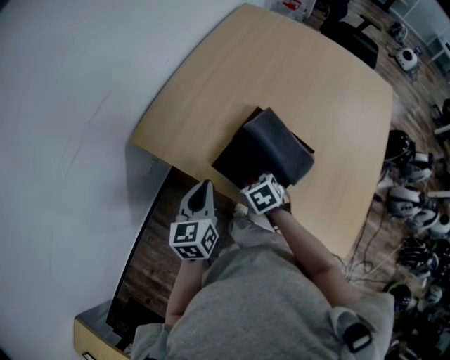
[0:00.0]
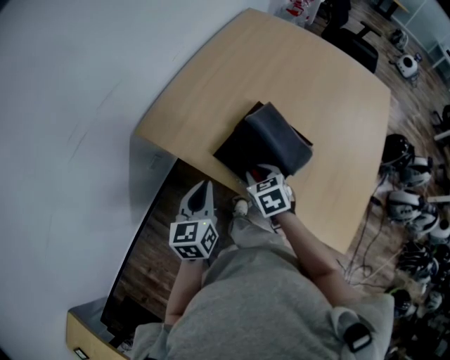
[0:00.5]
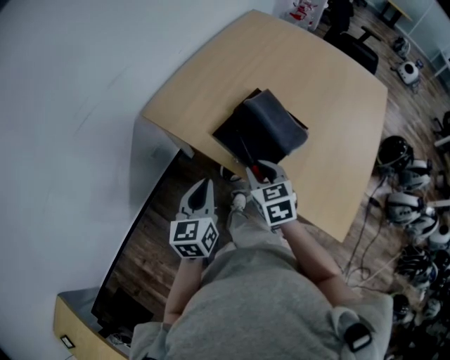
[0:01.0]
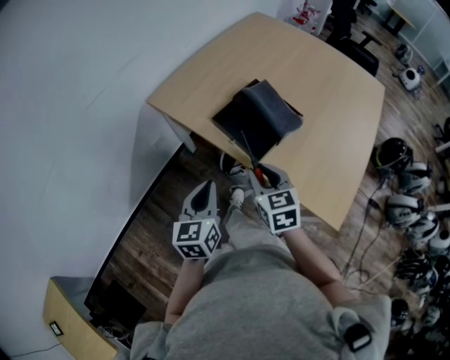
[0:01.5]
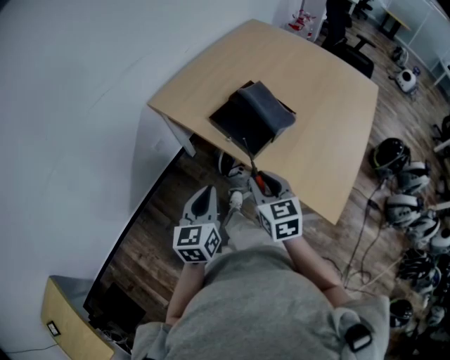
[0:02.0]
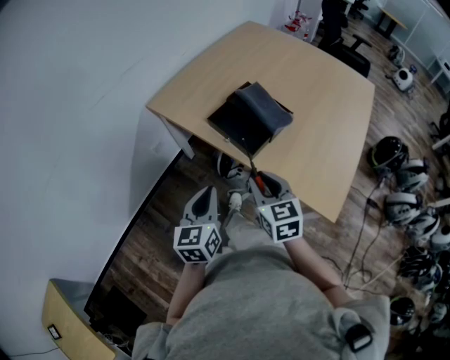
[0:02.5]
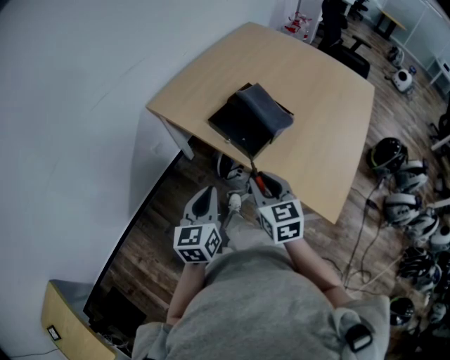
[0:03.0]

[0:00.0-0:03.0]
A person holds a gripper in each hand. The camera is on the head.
0:00.0 to 0:01.5: The left gripper moves backward, about 20 cm. Meanwhile the right gripper is displaced backward and upward by approximately 20 cm, and points its fingers about 30 degrees further upward.
0:01.5 to 0:03.0: The right gripper is displaced backward by approximately 5 cm.

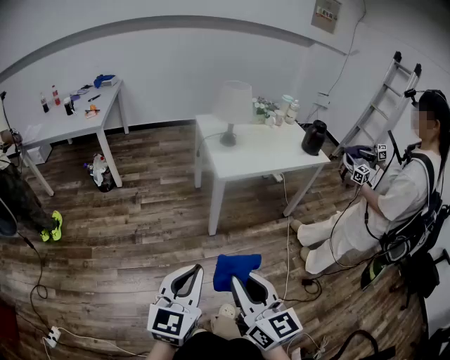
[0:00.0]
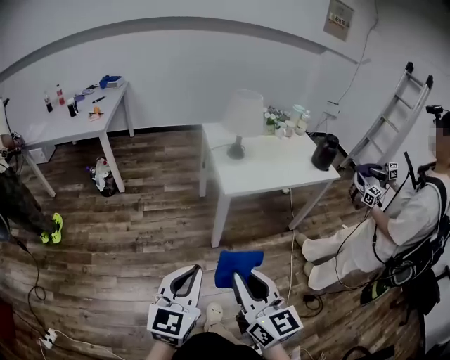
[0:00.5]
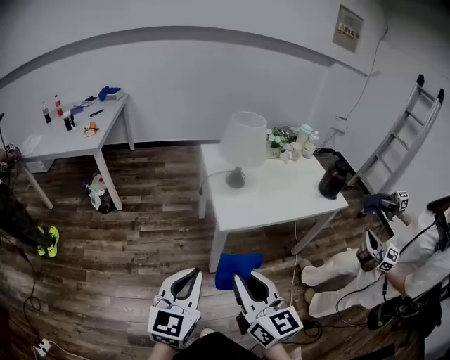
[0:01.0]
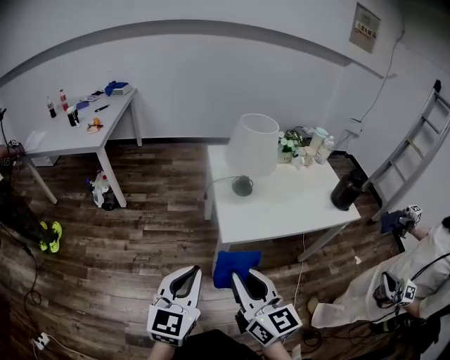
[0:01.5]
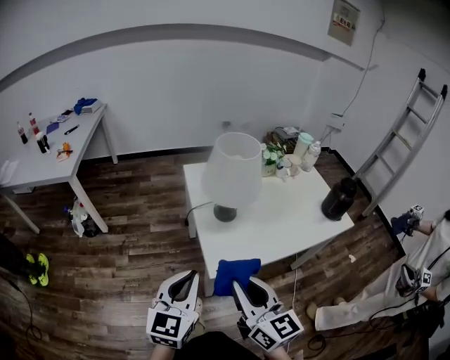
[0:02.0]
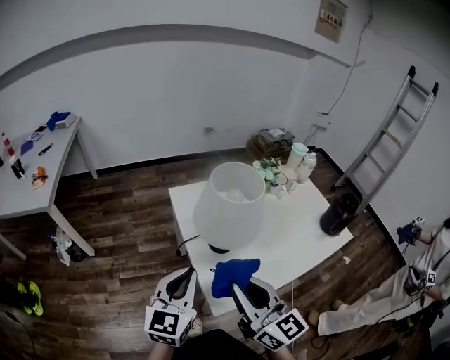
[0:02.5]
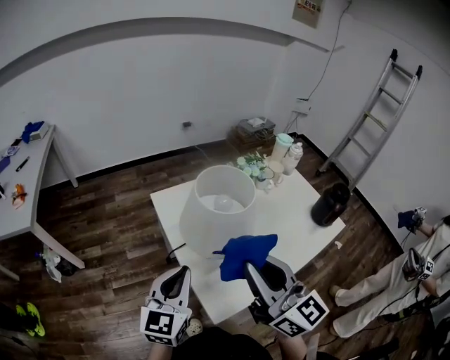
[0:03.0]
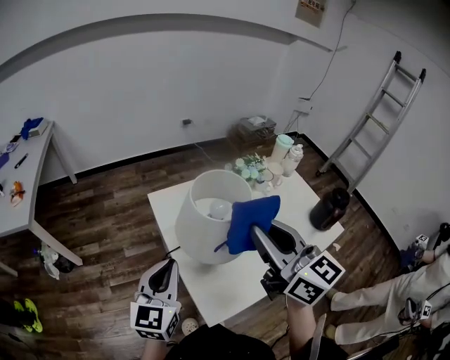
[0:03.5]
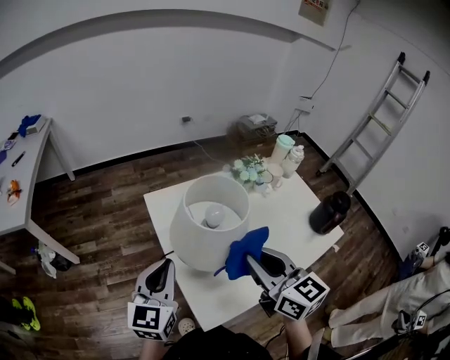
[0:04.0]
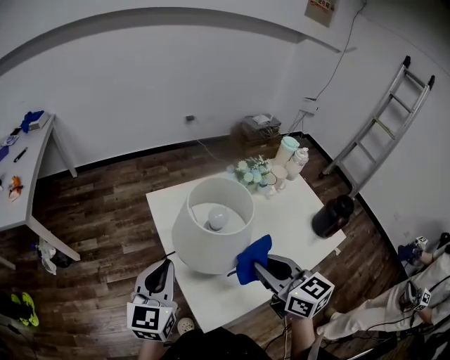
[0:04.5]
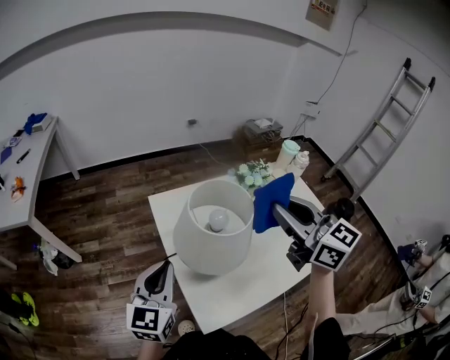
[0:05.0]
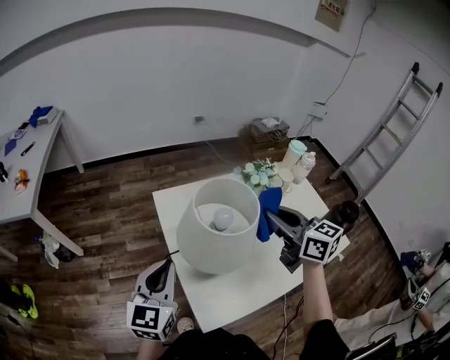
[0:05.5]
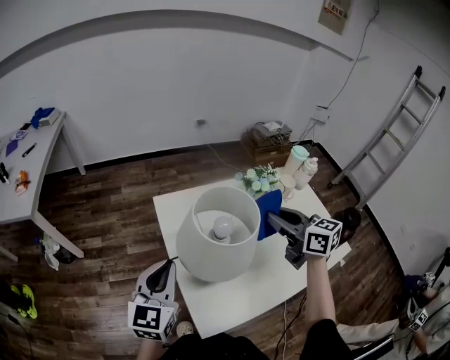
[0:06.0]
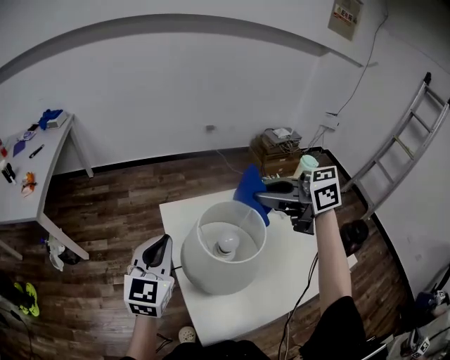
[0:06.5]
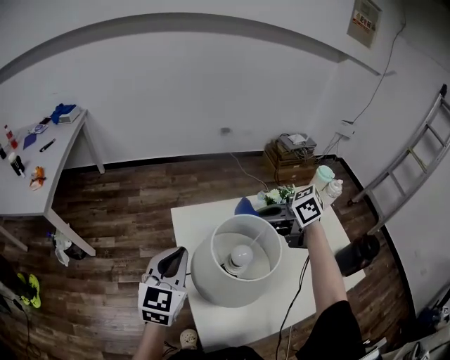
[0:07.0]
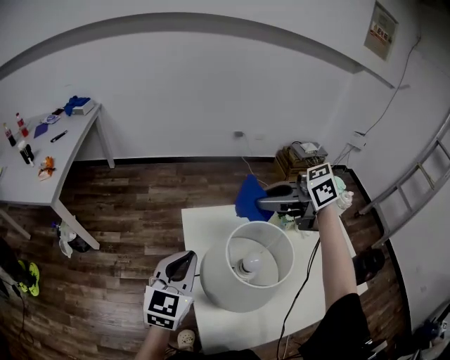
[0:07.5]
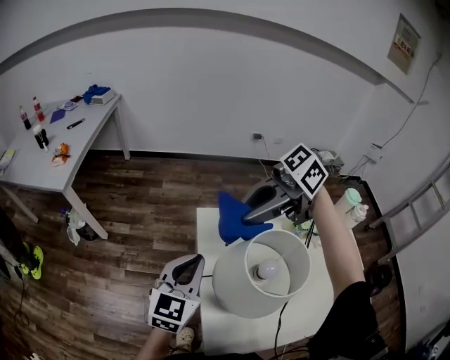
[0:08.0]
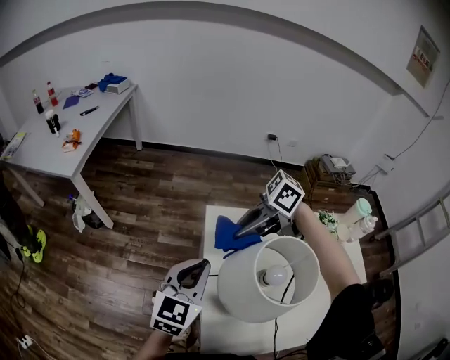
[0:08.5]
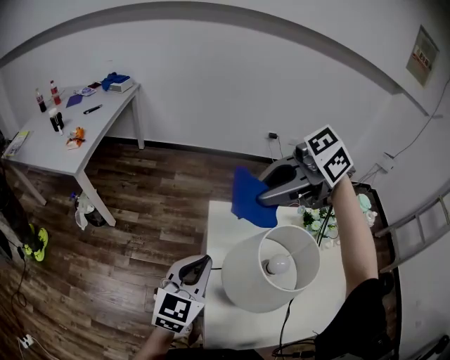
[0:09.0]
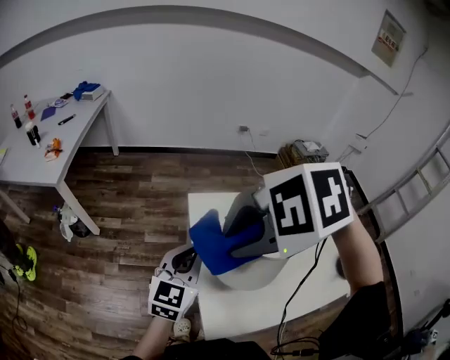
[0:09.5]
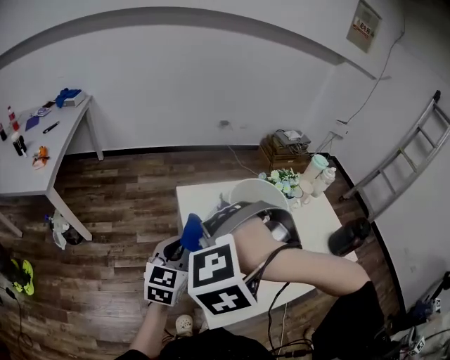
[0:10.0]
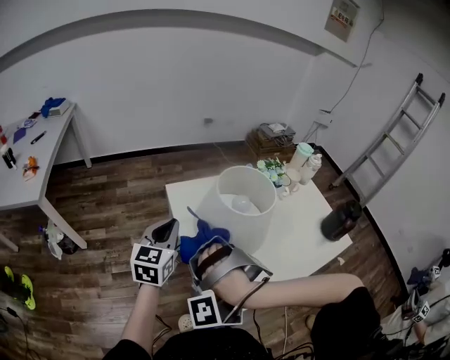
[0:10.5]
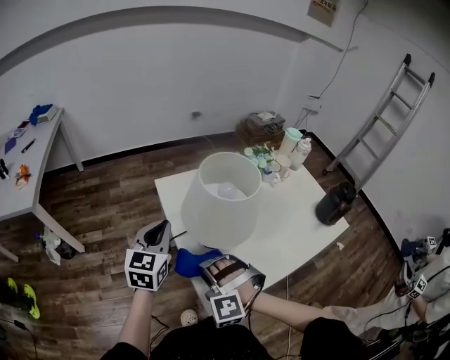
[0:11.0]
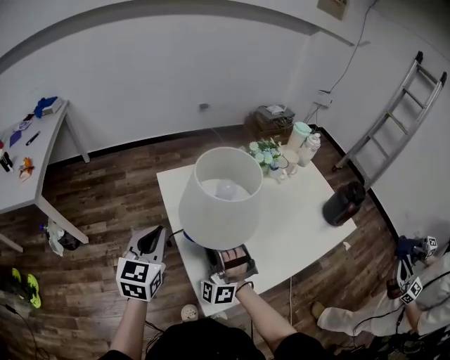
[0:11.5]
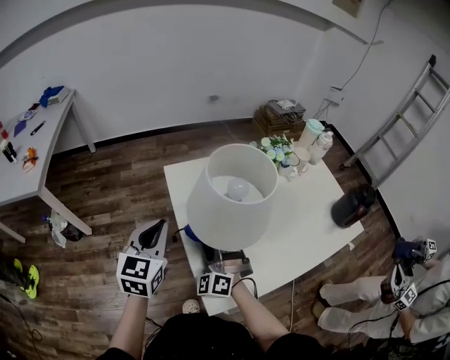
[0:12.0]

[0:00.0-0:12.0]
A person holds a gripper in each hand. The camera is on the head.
0:00.0 to 0:02.0: The pair of grippers is taken forward, roughly 50 cm.
0:02.0 to 0:04.0: Both grippers move forward, approximately 25 cm.
0:04.0 to 0:06.0: The right gripper shifts about 15 cm forward and to the right.
0:06.0 to 0:08.0: The left gripper shifts by approximately 10 cm, while the right gripper moves up and down over about 10 cm, changing direction 2 times, and changes its angle by approximately 90 degrees.
0:08.0 to 0:10.0: The left gripper ends up roughly 5 cm from where it was, while the right gripper swings up and down, about 15 cm each way, with 2 reversals, and points its fingers about 40 degrees further downward.
0:10.0 to 0:12.0: The right gripper is displaced downward by roughly 25 cm, and points its fingers about 40 degrees further upward.

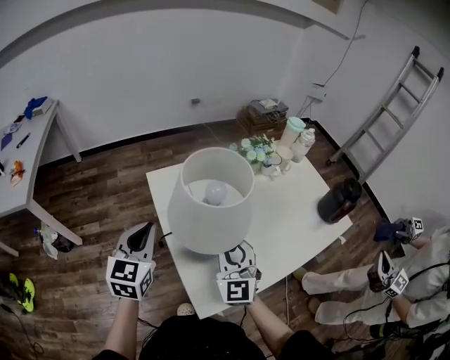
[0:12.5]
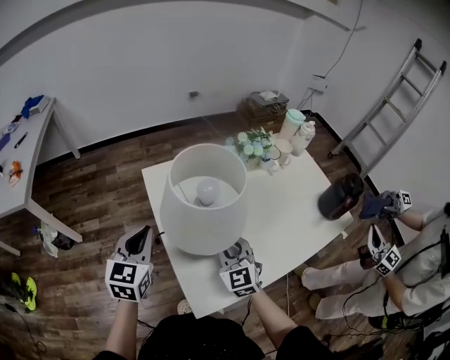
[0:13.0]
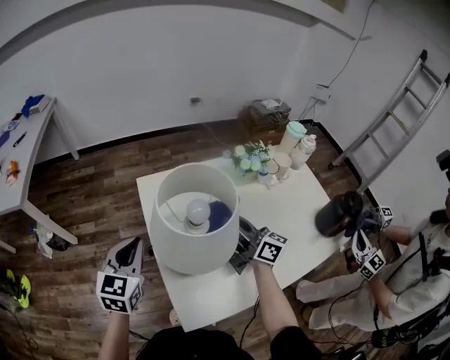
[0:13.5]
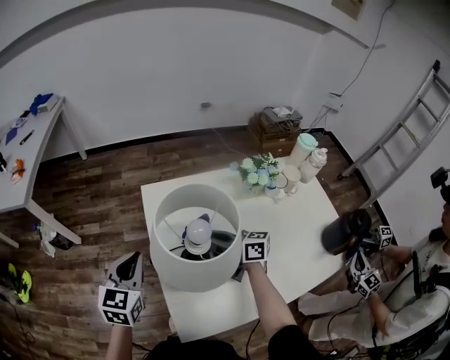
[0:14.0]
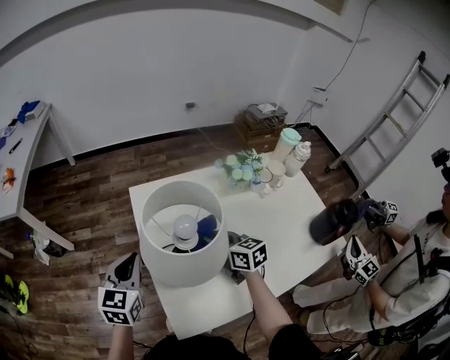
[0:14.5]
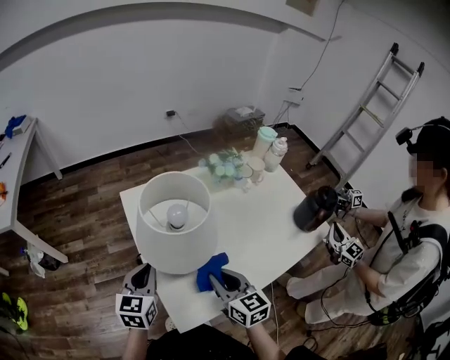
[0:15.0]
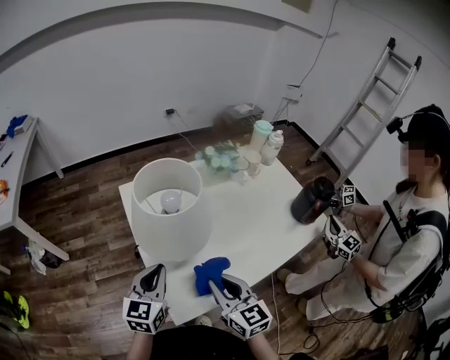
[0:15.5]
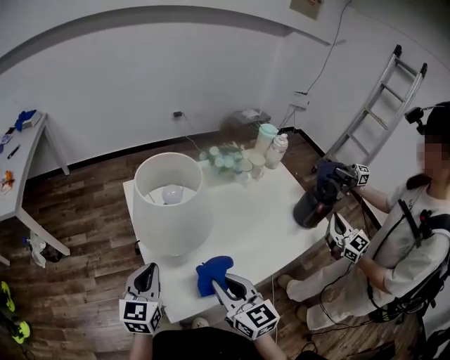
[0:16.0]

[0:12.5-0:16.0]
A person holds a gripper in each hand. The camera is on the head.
0:12.5 to 0:14.5: The right gripper goes up and down, roughly 10 cm each way, reversing 2 times, and changes its angle by roughly 60 degrees.
0:14.5 to 0:16.0: The right gripper moves backward, about 25 cm, and swivels some 30 degrees. The left gripper moves backward and to the right, roughly 10 cm.

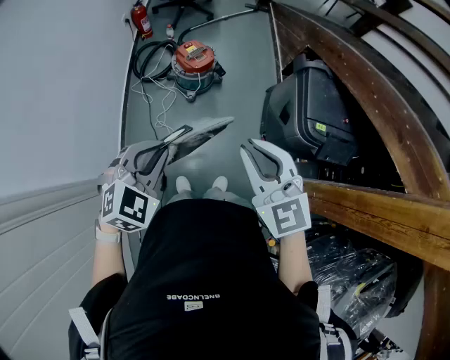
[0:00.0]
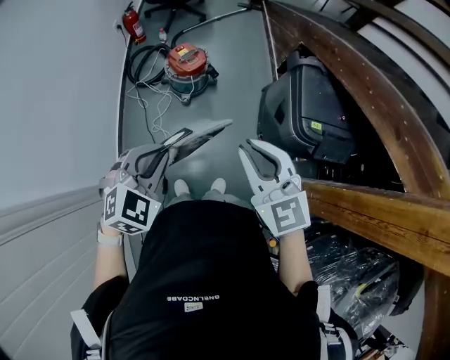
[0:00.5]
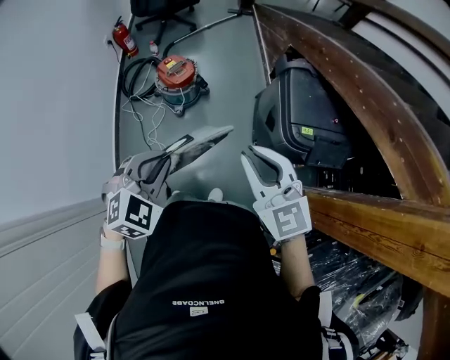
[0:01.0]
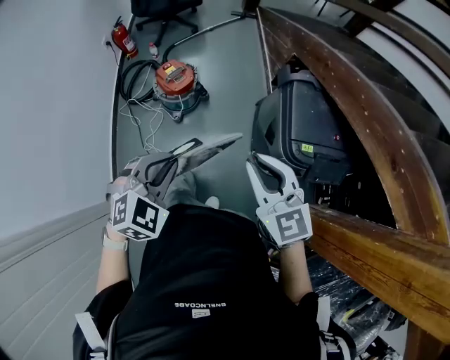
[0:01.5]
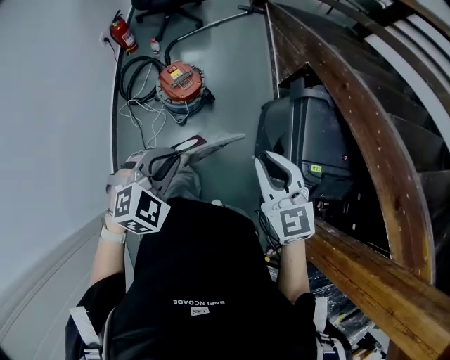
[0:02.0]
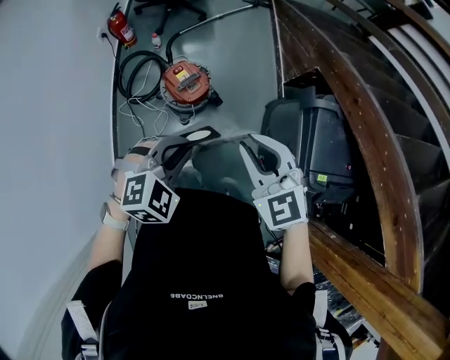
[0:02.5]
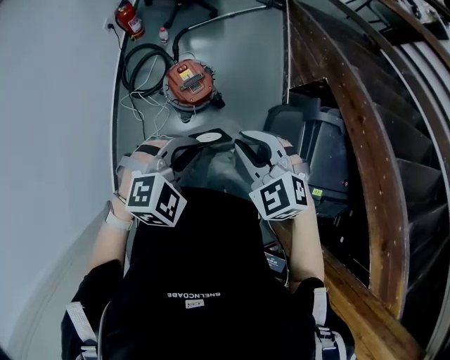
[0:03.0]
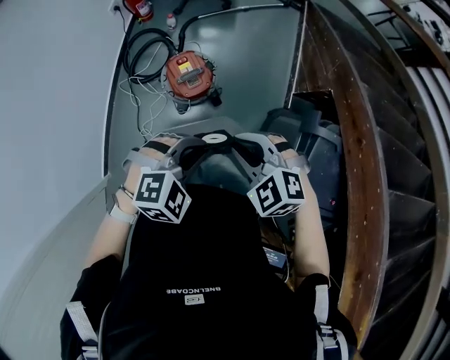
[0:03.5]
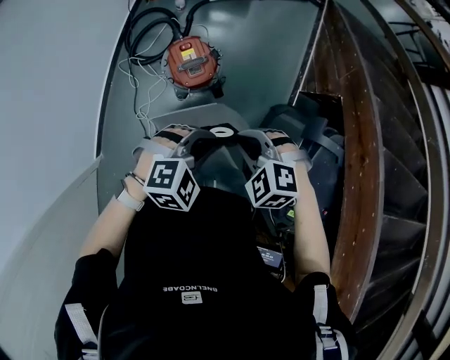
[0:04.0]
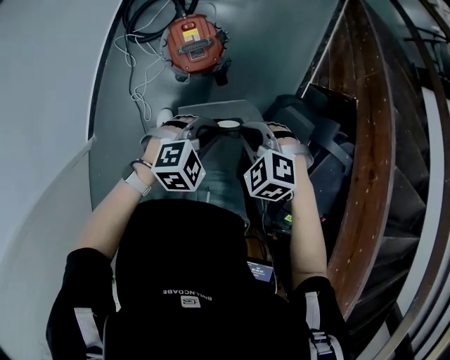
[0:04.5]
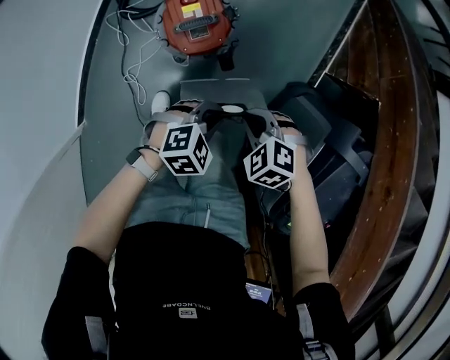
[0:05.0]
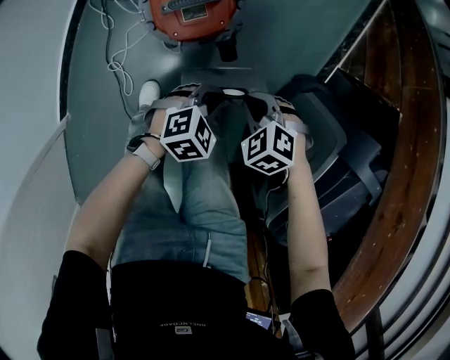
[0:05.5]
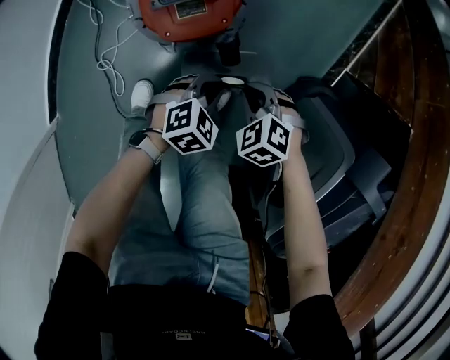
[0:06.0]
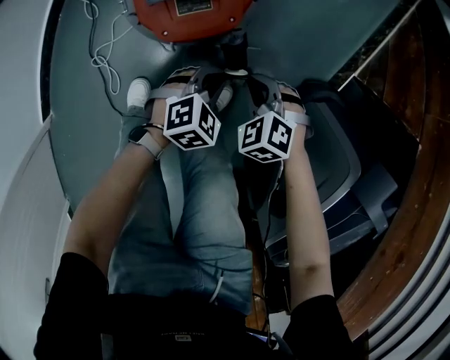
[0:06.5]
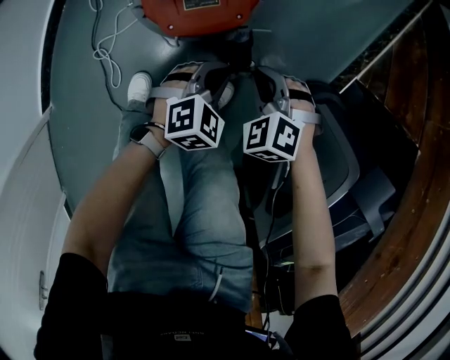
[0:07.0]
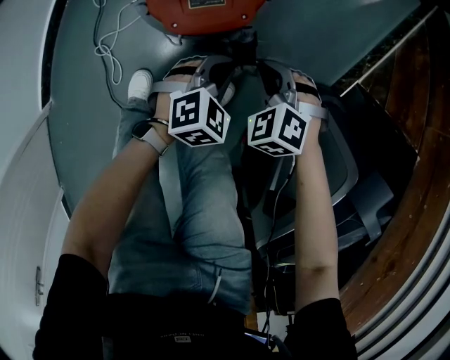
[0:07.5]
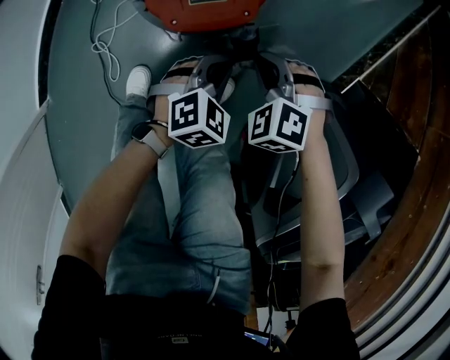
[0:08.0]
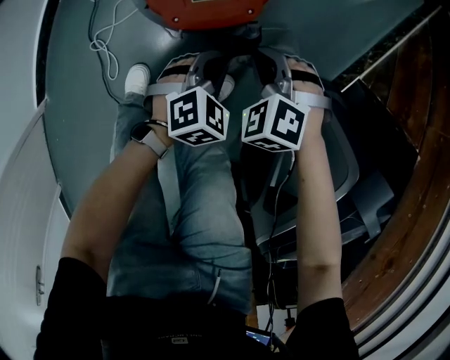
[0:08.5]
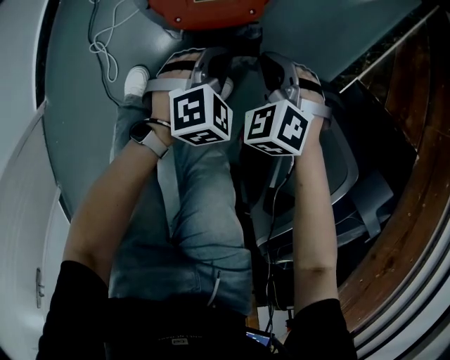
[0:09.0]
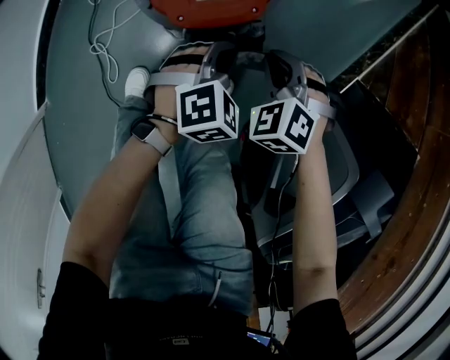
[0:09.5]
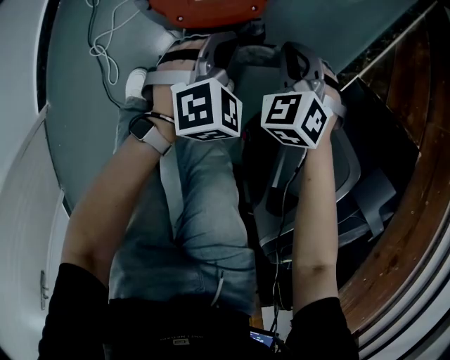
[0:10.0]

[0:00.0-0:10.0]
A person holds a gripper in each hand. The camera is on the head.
0:00.0 to 0:02.0: Both grippers travel together forward, approximately 30 cm.
0:02.0 to 0:04.0: The left gripper moves roughly 30 cm. The right gripper changes place by some 35 cm, and angles its fingers downward, by some 40 degrees.
0:04.0 to 0:06.0: Both grippers travel together downward, approximately 50 cm. The left gripper rotates roughly 30 degrees.
0:06.0 to 0:08.0: The right gripper changes place by about 10 cm, and changes its angle by about 20 degrees; the left gripper ends up approximately 5 cm from where it was.
0:08.0 to 0:10.0: The two grippers go some 5 cm forward. The right gripper swivels about 20 degrees.
